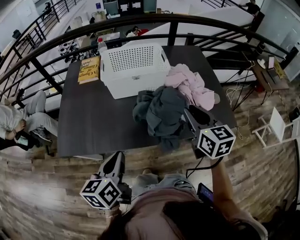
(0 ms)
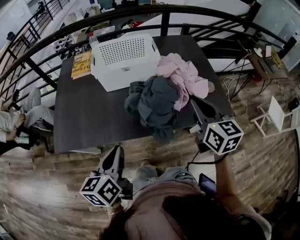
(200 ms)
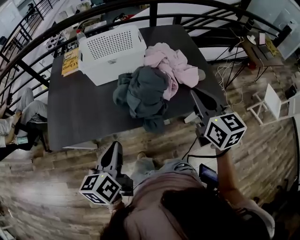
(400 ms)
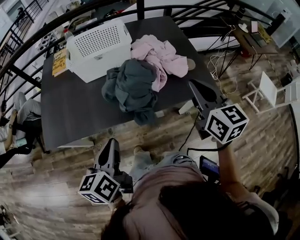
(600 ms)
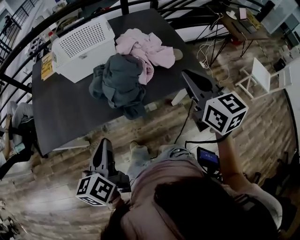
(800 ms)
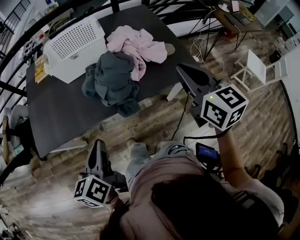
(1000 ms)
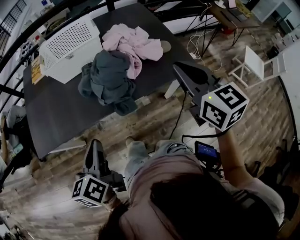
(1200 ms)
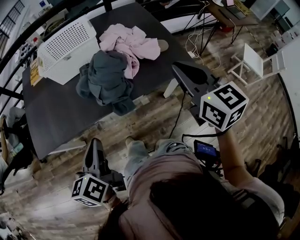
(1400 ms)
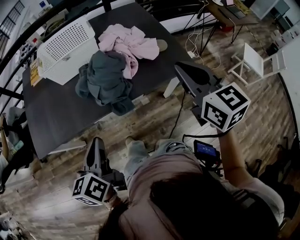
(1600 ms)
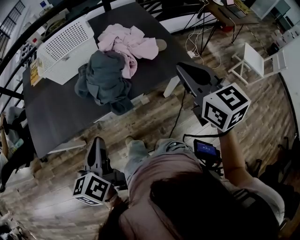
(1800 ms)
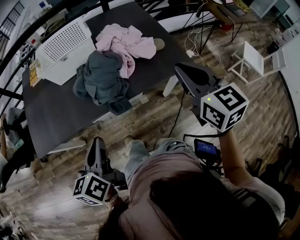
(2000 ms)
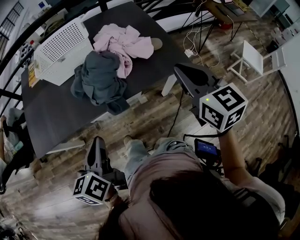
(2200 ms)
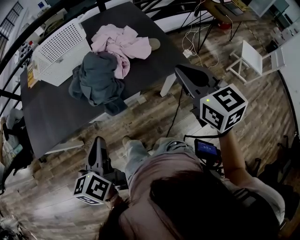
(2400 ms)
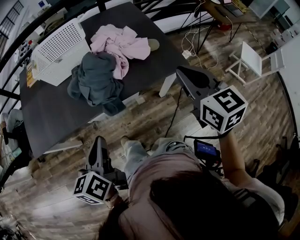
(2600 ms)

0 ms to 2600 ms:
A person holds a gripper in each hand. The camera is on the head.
0 ms to 1200 ms: The right gripper goes approximately 20 cm to the right, backward and upward. The left gripper moves to the right and backward, approximately 15 cm.
1200 ms to 2600 ms: Both grippers move to the right, approximately 10 cm.

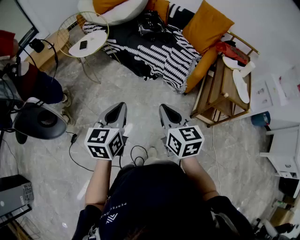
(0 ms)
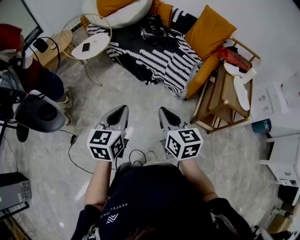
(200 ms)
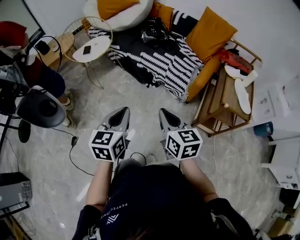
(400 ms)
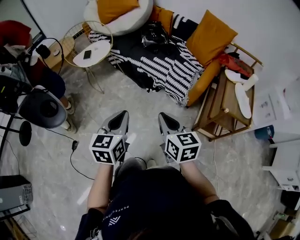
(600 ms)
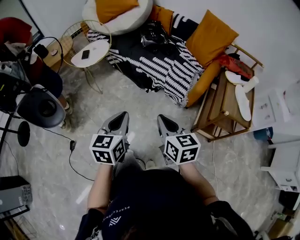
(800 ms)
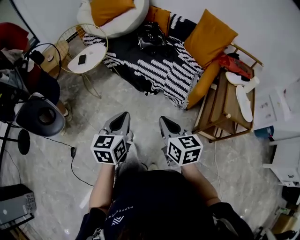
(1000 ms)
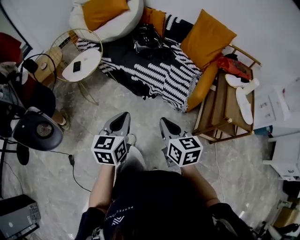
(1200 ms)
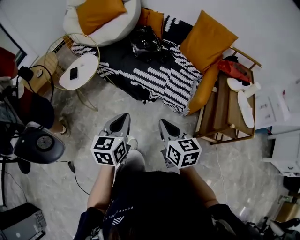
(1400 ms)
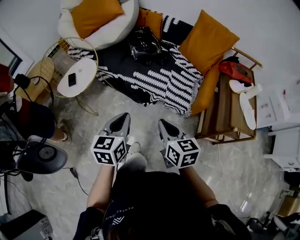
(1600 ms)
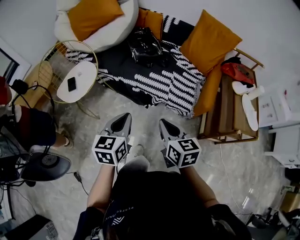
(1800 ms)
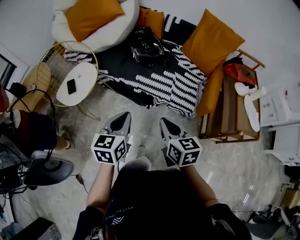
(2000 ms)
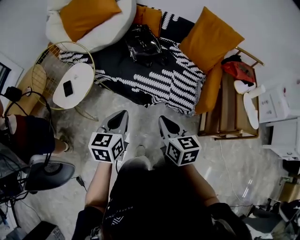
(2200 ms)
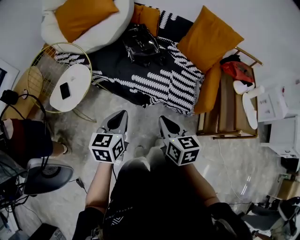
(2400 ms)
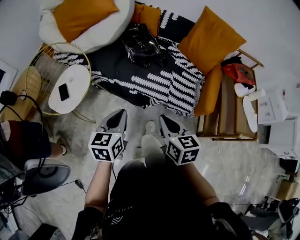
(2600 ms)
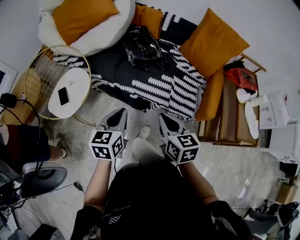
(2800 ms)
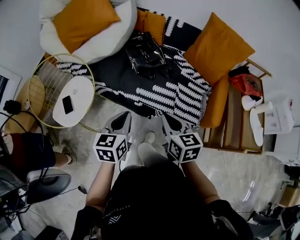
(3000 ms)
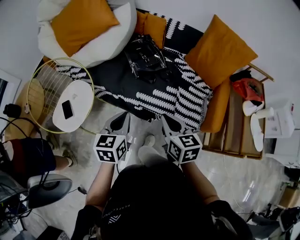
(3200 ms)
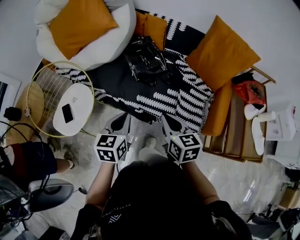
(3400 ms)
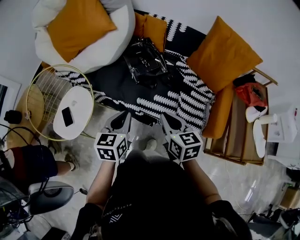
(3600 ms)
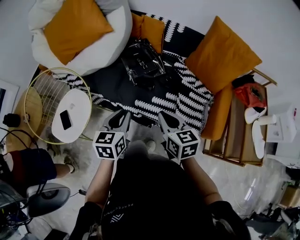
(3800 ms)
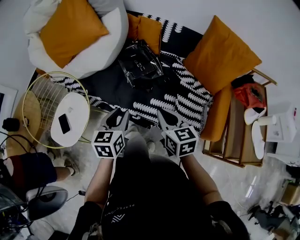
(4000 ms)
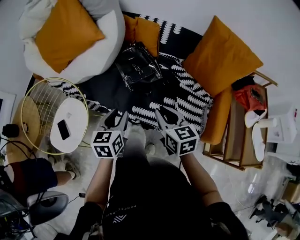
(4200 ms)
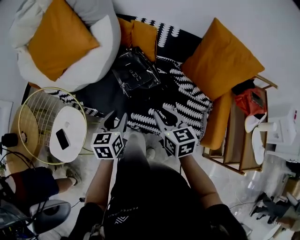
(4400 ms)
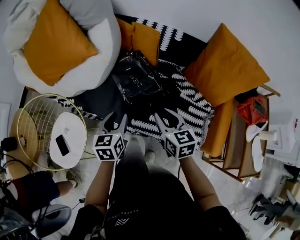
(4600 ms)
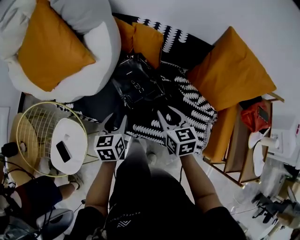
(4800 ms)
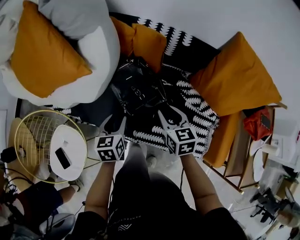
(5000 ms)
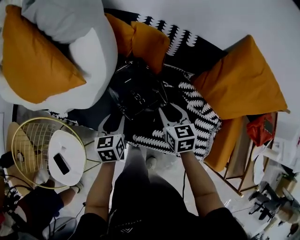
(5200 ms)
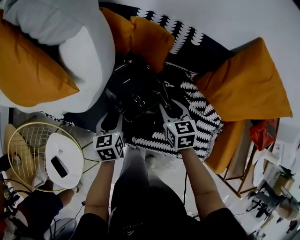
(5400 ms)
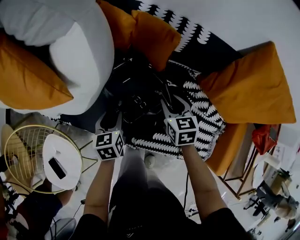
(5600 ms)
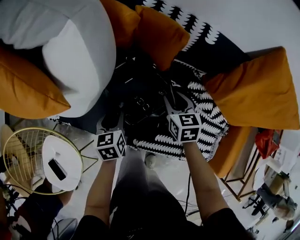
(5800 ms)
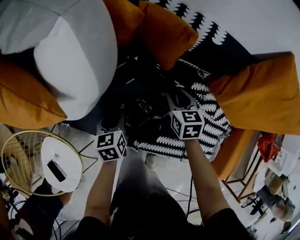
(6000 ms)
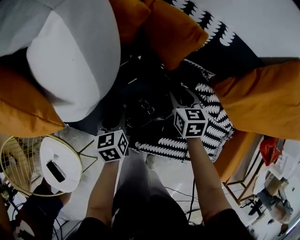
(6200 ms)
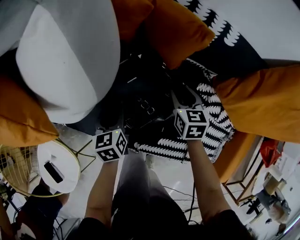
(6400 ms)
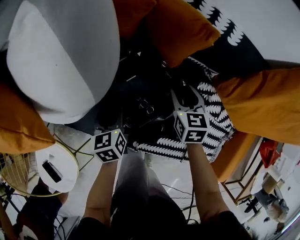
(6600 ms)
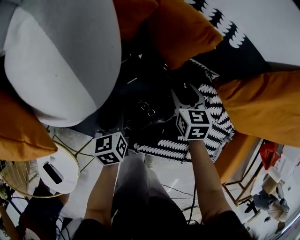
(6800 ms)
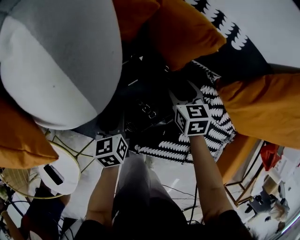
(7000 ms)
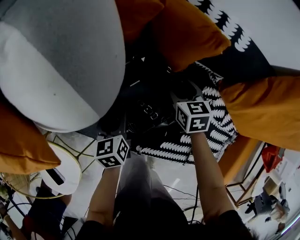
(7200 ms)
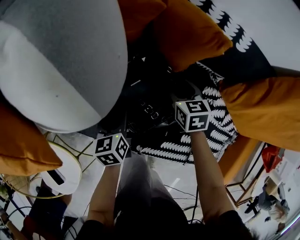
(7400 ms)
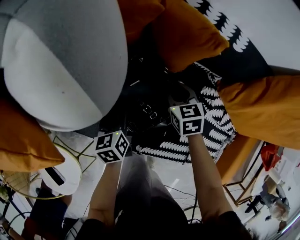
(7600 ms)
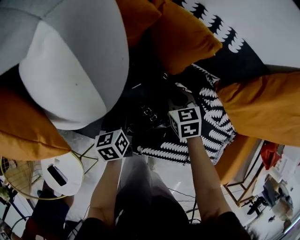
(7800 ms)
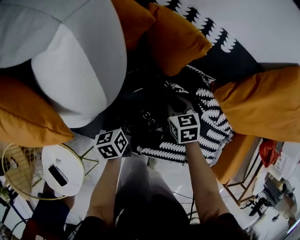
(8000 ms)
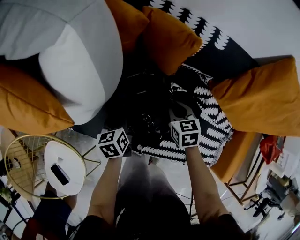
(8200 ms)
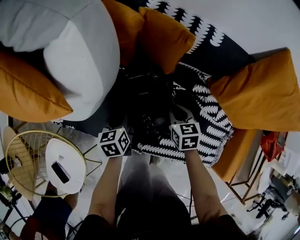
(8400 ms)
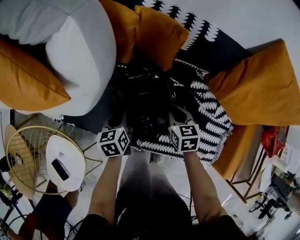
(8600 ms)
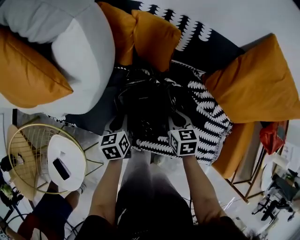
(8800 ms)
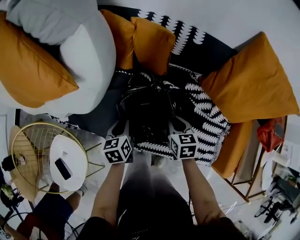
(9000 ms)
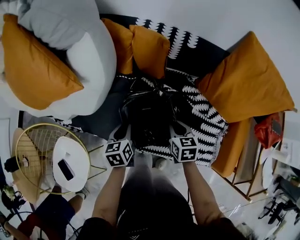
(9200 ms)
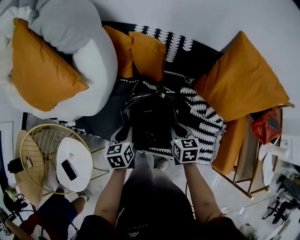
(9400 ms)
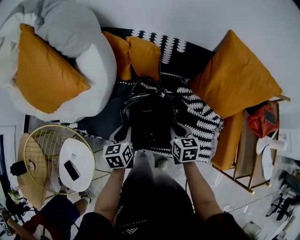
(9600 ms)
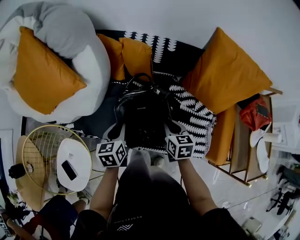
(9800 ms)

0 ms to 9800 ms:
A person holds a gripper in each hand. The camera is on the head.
0 ms to 1400 ms: The two grippers go approximately 20 cm forward.
1400 ms to 2800 ms: Both grippers move forward and to the left, some 25 cm.
2800 ms to 4200 ms: Both grippers travel together forward, some 25 cm. The left gripper opens.
4200 ms to 5600 ms: Both grippers travel together forward and downward, about 35 cm.
5600 ms to 7000 ms: The right gripper is displaced downward and forward by some 15 cm, and opens its fingers, while the left gripper goes about 5 cm downward.
7000 ms to 8400 ms: The left gripper closes up, while the right gripper moves backward, some 10 cm, and closes up.
8400 ms to 9800 ms: The grippers both shift upward and backward by about 20 cm.

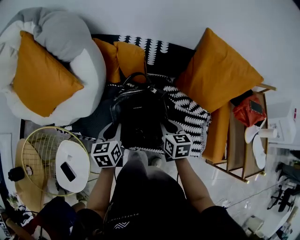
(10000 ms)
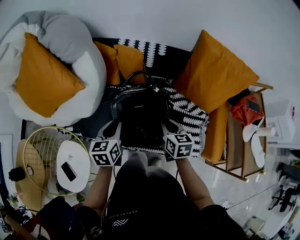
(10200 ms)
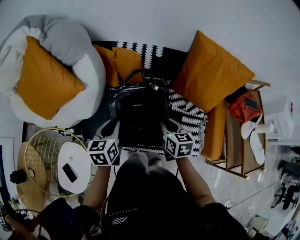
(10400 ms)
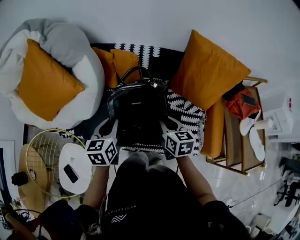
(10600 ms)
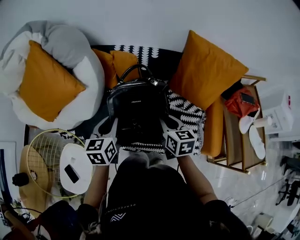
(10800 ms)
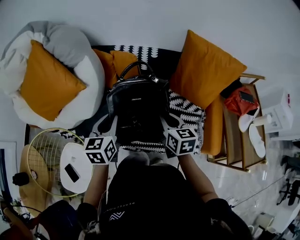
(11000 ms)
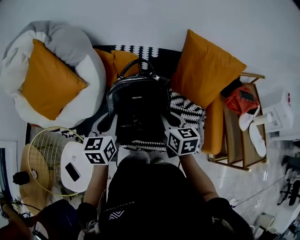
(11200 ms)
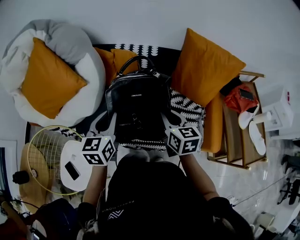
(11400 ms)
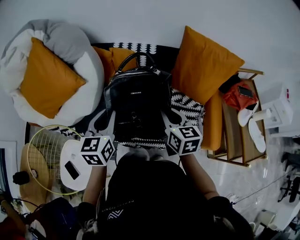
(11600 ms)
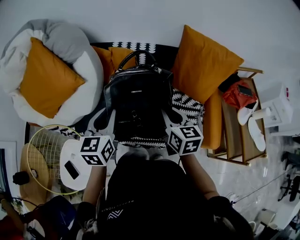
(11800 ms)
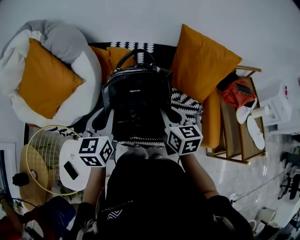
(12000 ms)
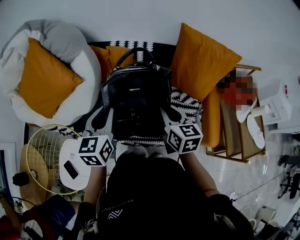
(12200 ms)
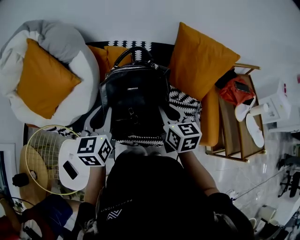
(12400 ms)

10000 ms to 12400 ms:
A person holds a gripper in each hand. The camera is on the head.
10000 ms to 11200 ms: The two grippers go approximately 10 cm upward.
11200 ms to 12400 ms: The grippers stay close to where they were, moving slightly.

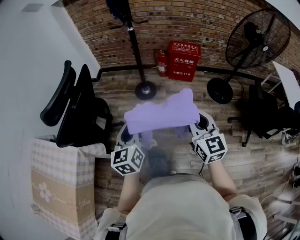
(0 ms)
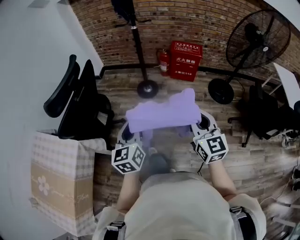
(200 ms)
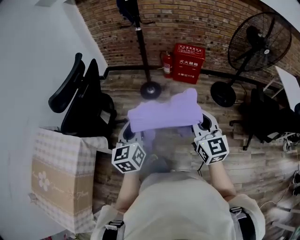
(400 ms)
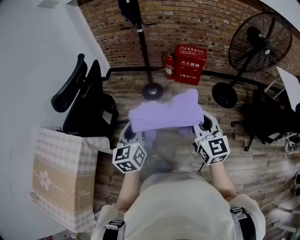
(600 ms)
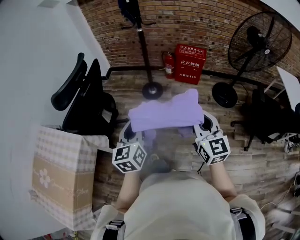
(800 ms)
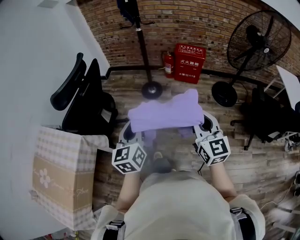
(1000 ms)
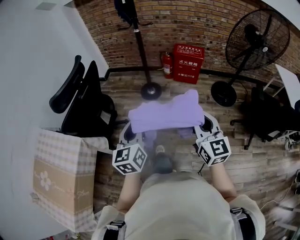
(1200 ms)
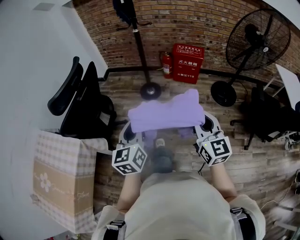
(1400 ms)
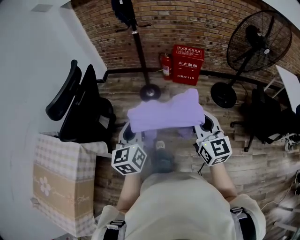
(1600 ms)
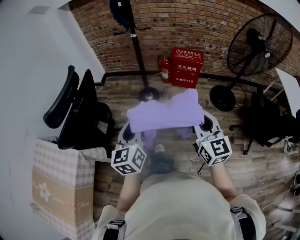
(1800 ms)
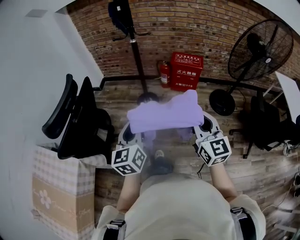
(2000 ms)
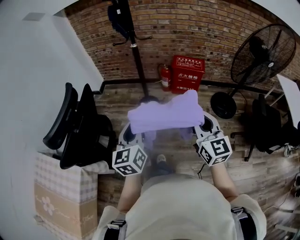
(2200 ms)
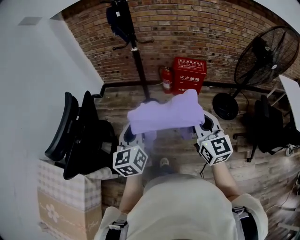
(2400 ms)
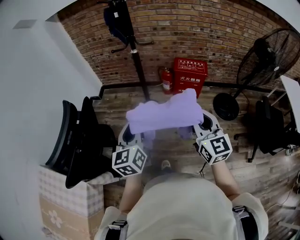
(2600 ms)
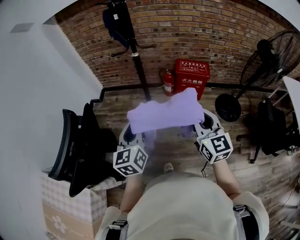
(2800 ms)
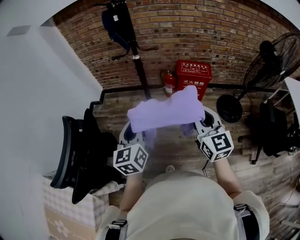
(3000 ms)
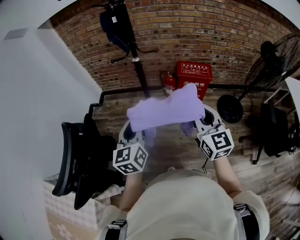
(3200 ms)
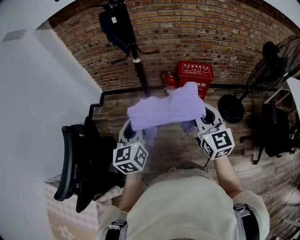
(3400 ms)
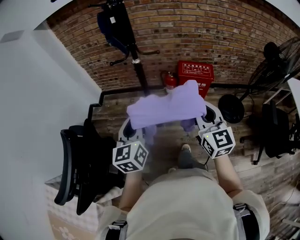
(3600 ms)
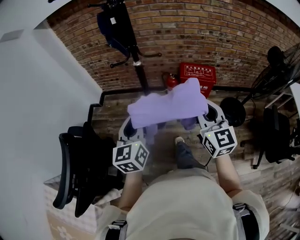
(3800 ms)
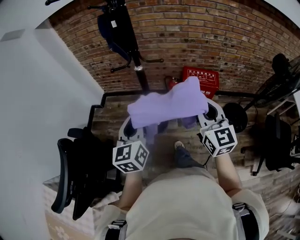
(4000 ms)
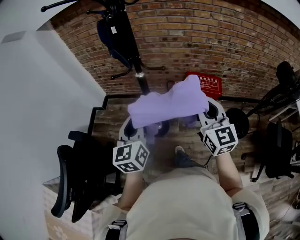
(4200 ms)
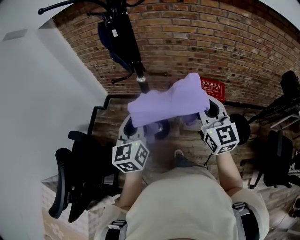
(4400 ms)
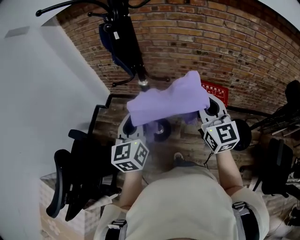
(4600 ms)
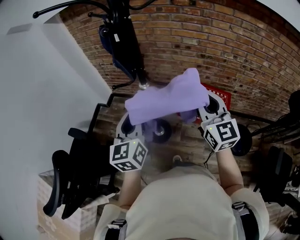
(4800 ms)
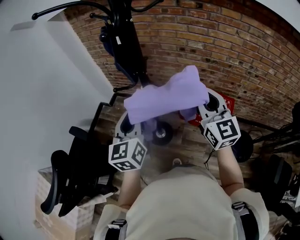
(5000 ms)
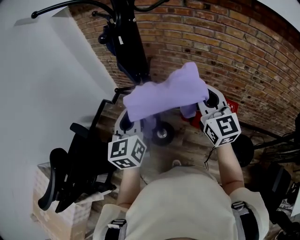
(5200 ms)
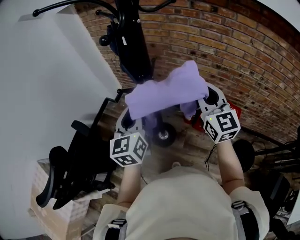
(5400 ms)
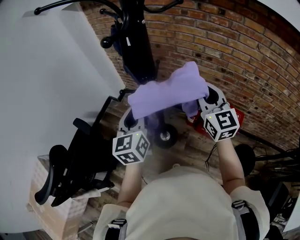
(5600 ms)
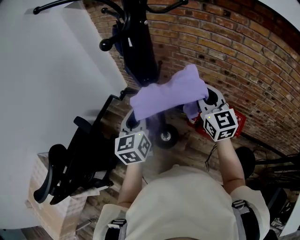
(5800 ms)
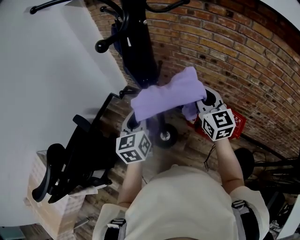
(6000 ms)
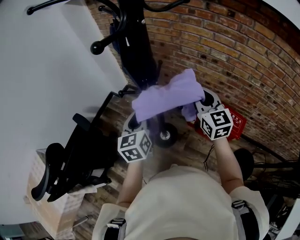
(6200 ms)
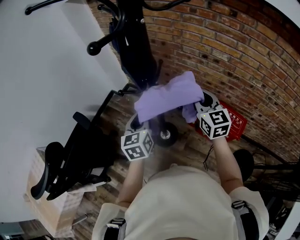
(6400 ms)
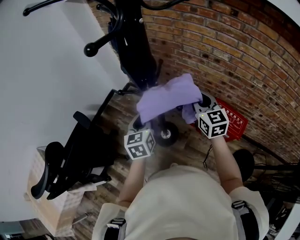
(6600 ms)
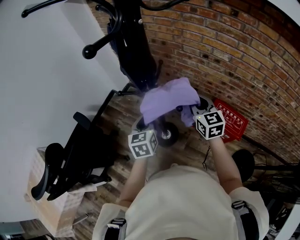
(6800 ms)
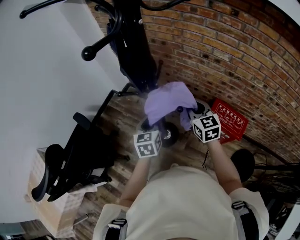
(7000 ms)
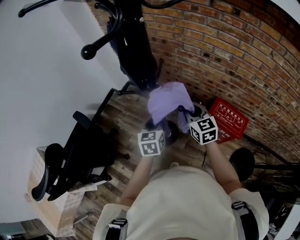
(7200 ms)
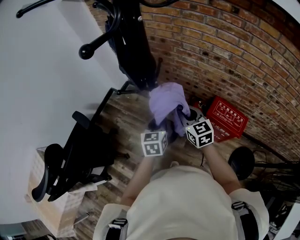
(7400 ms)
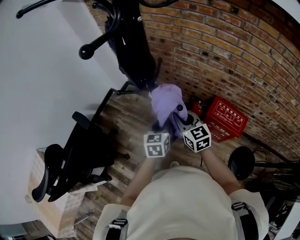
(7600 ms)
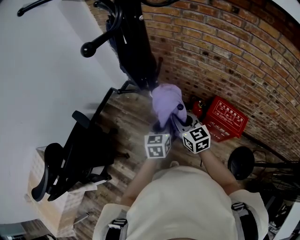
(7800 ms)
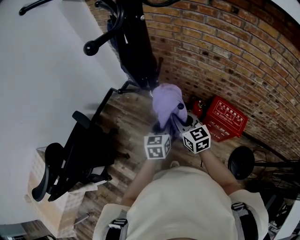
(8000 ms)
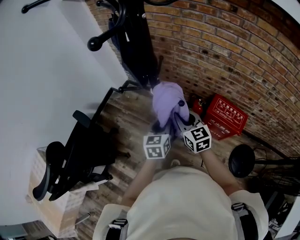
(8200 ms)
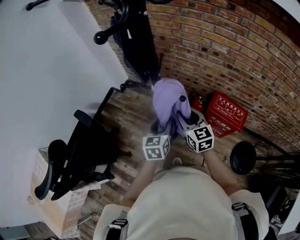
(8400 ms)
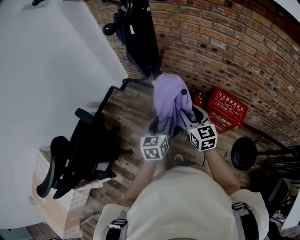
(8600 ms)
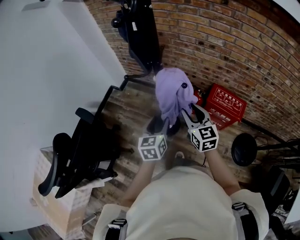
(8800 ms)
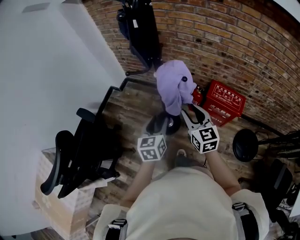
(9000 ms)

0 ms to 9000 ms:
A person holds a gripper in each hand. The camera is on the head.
0 ms to 1600 ms: The left gripper moves about 5 cm.
1600 ms to 3000 ms: Both grippers move forward, about 30 cm.
3000 ms to 4400 ms: Both grippers travel together forward, roughly 20 cm.
4400 ms to 6000 ms: The left gripper travels forward by some 15 cm, and swivels about 20 degrees, while the right gripper shifts roughly 25 cm forward, and turns by about 20 degrees.
6000 ms to 7600 ms: The right gripper moves downward and to the left, about 15 cm, while the left gripper shifts about 15 cm downward and to the right.
7600 ms to 9000 ms: The right gripper goes roughly 10 cm backward, and opens. The left gripper is displaced backward and to the left by approximately 15 cm, and opens.
